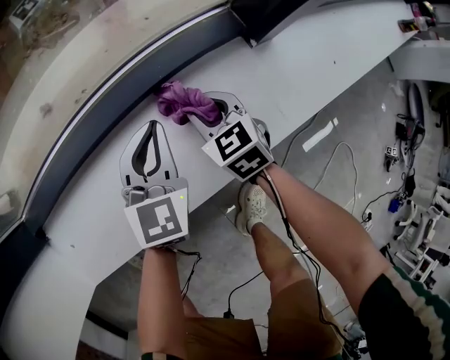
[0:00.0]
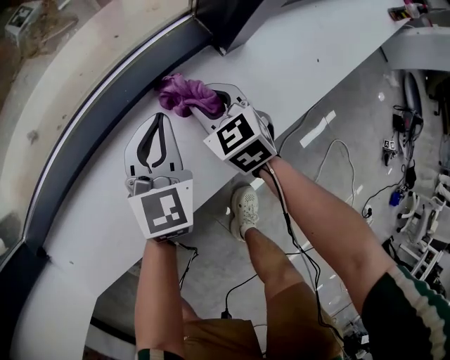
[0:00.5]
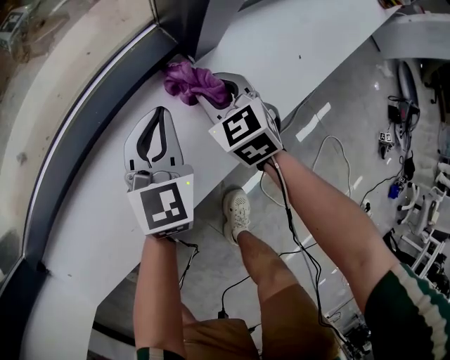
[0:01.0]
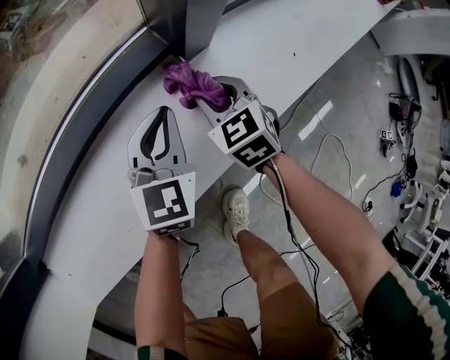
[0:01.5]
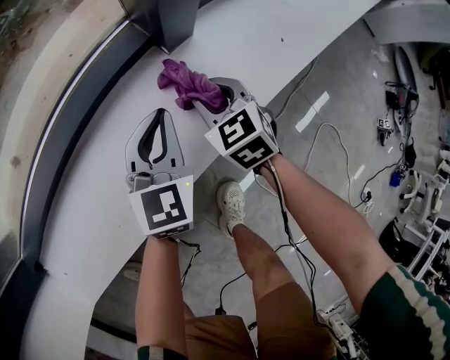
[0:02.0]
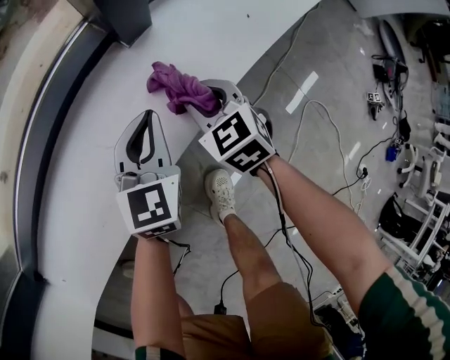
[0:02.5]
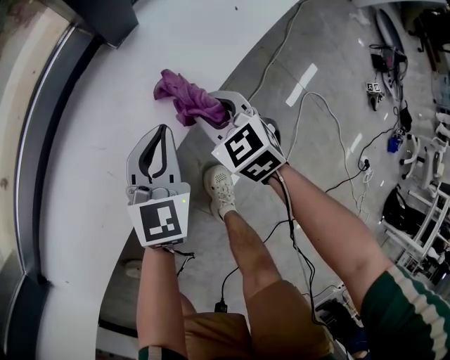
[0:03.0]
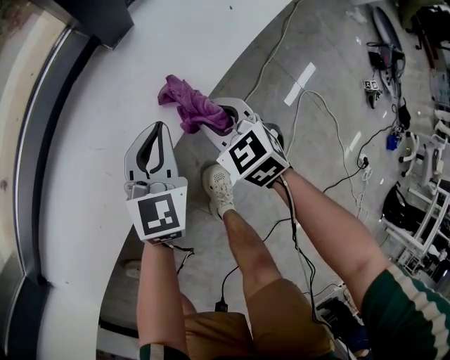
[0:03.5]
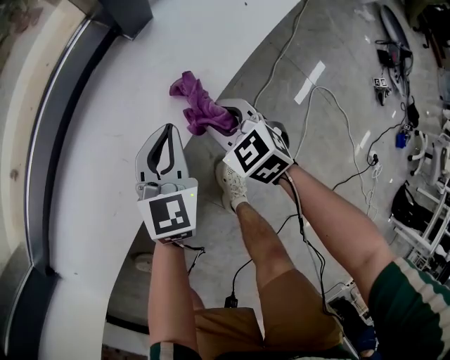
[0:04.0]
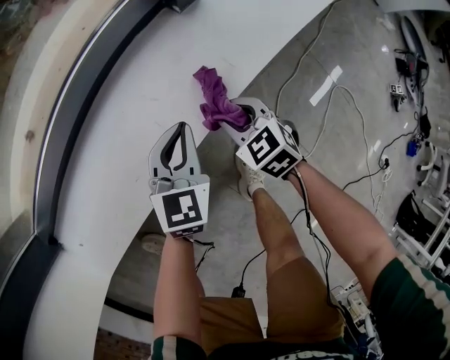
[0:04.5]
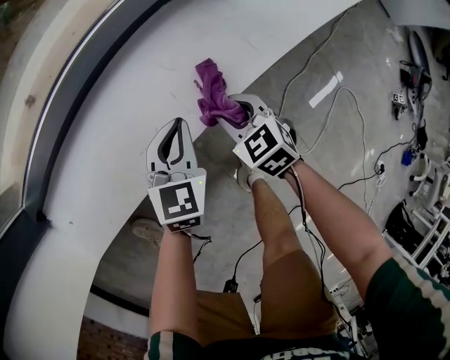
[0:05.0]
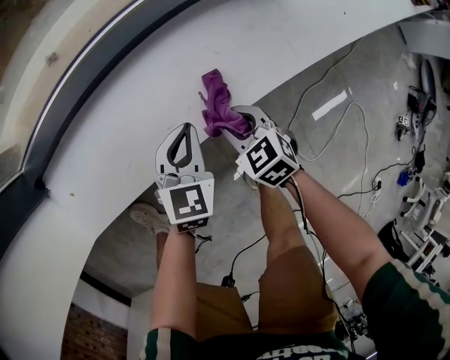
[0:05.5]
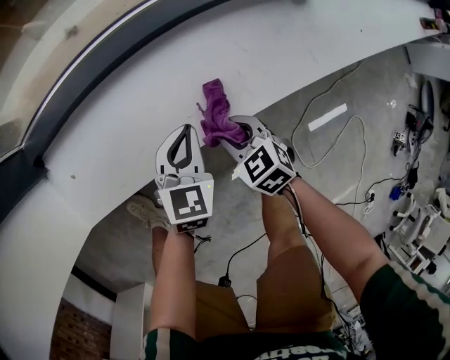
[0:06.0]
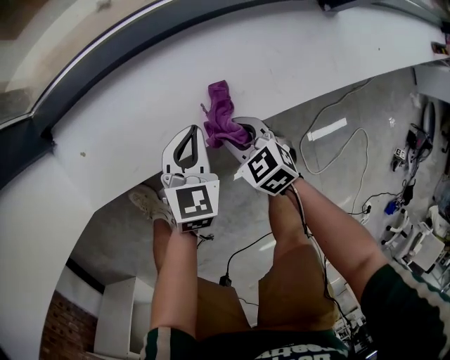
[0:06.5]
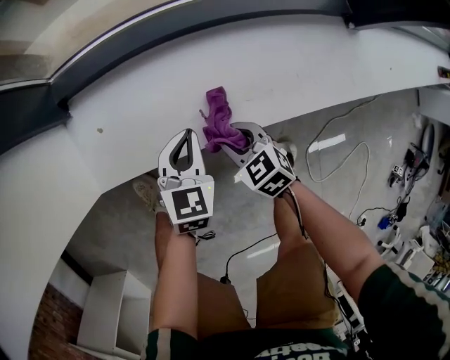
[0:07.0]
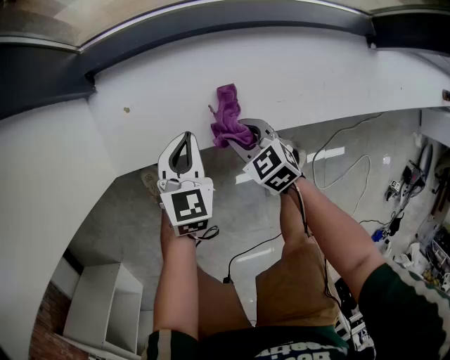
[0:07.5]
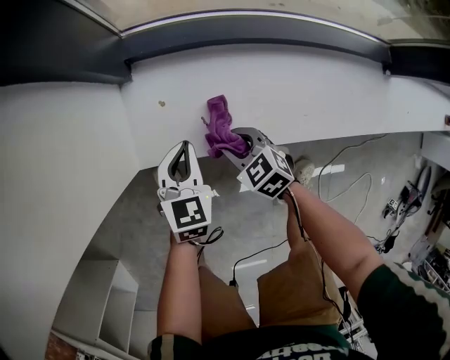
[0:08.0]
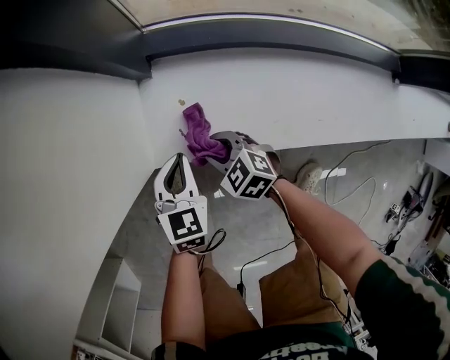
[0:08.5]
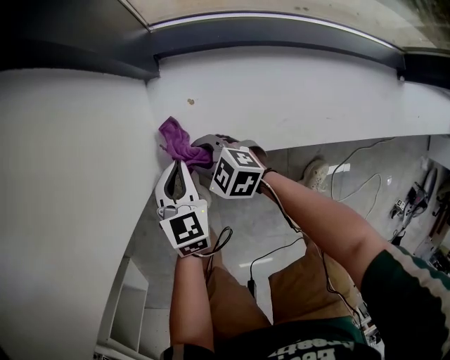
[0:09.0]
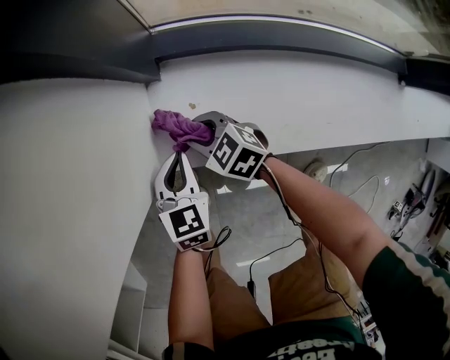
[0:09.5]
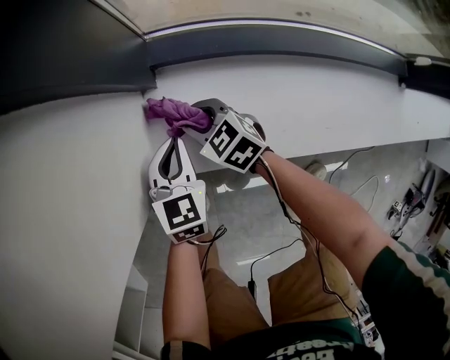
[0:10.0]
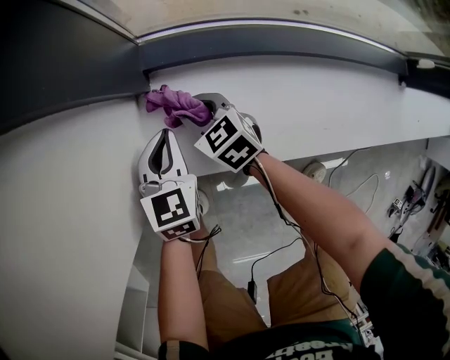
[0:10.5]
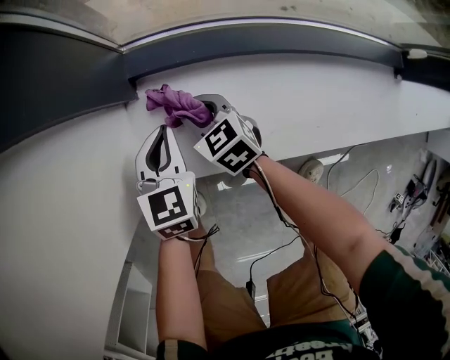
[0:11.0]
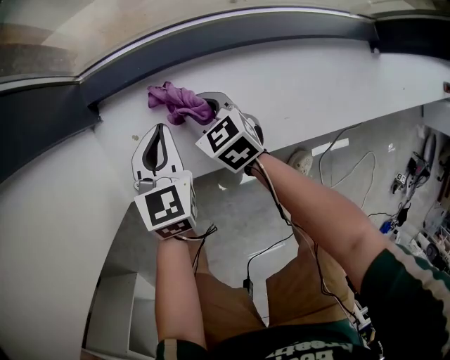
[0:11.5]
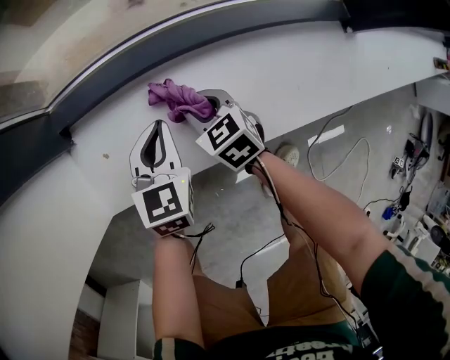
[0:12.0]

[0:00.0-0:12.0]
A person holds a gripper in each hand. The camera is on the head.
0:00.0 to 0:02.0: Both grippers move to the right, some 20 cm.
0:02.0 to 0:04.0: The grippers both shift backward by roughly 10 cm.
0:04.0 to 0:06.0: Both grippers travel together to the left, about 25 cm. The left gripper swivels roughly 20 degrees. Meanwhile the right gripper swivels roughly 20 degrees.
0:06.0 to 0:08.0: The left gripper moves about 35 cm, and rotates roughly 30 degrees; the right gripper moves approximately 30 cm, and swivels roughly 30 degrees.
0:08.0 to 0:10.0: The left gripper heads forward, covering some 10 cm; the right gripper heads forward, covering approximately 20 cm.
0:10.0 to 0:12.0: Both grippers travel together to the right, roughly 25 cm. The right gripper rotates approximately 30 degrees.

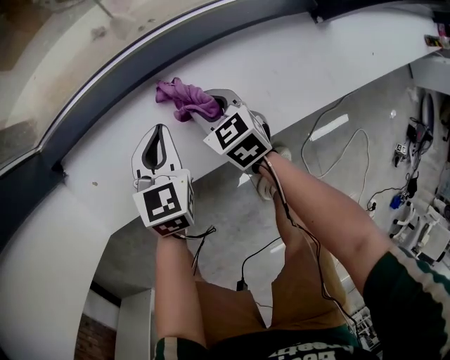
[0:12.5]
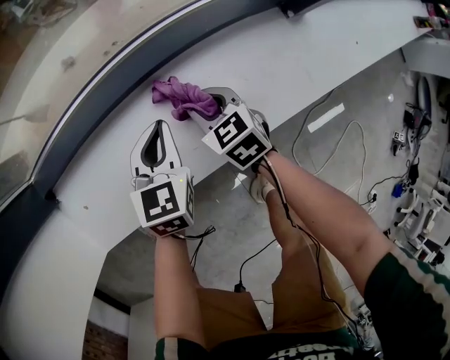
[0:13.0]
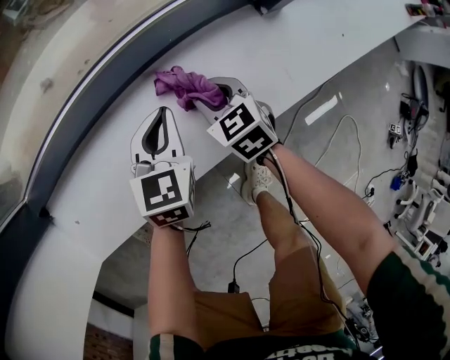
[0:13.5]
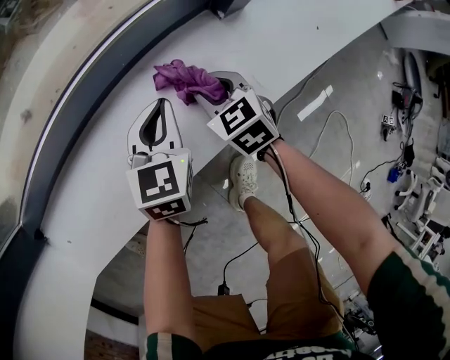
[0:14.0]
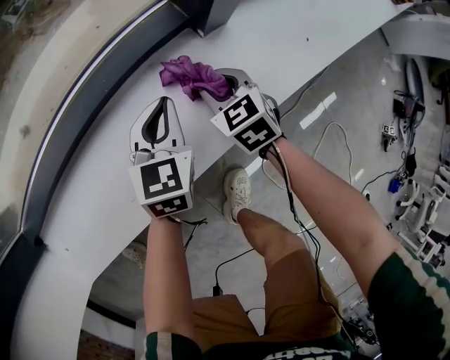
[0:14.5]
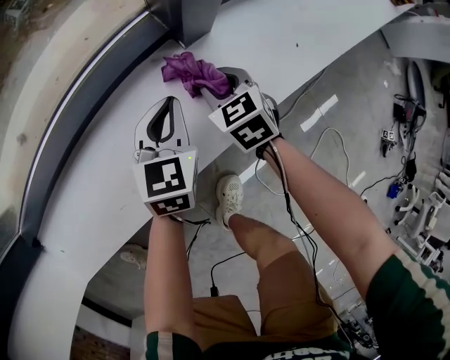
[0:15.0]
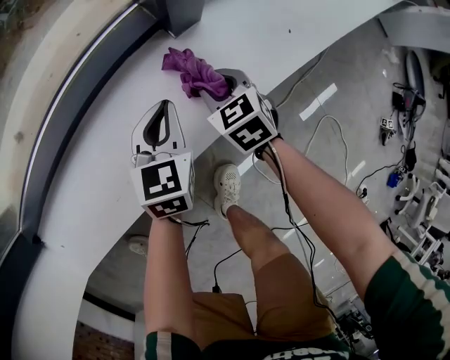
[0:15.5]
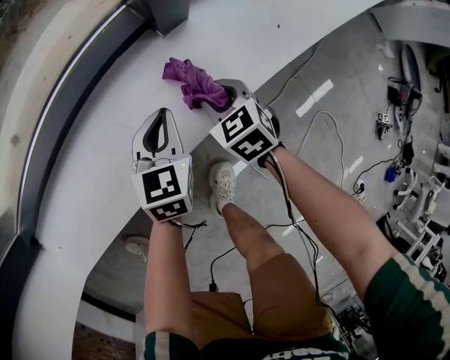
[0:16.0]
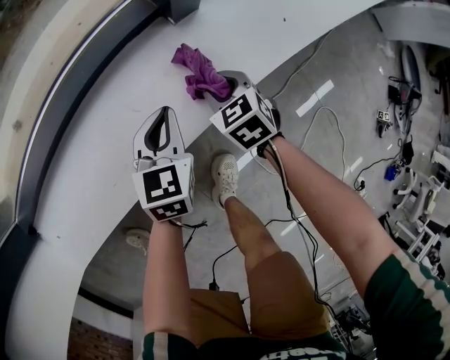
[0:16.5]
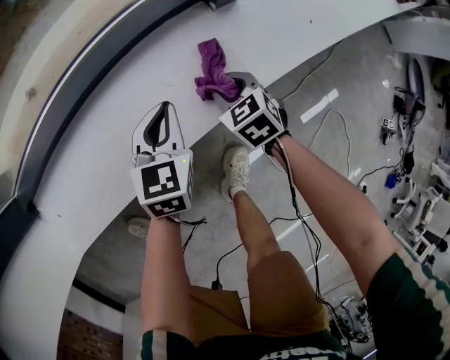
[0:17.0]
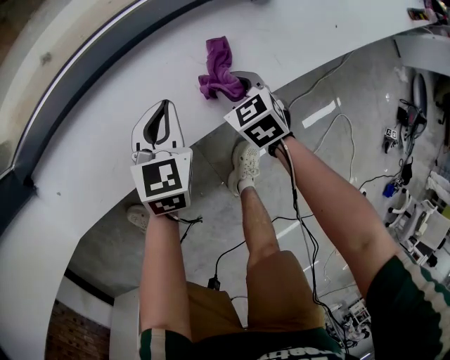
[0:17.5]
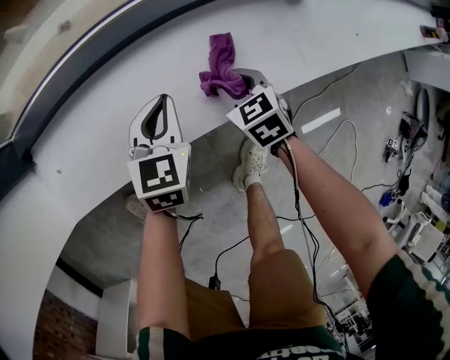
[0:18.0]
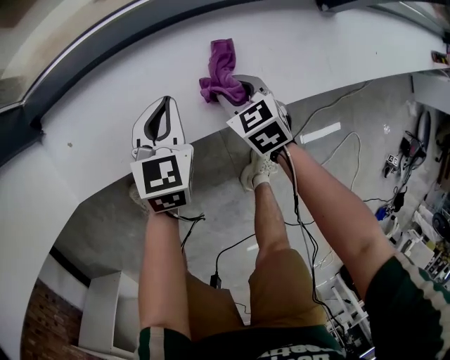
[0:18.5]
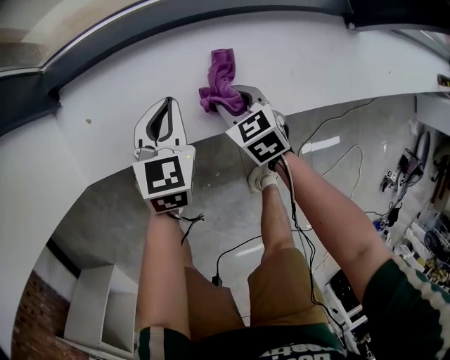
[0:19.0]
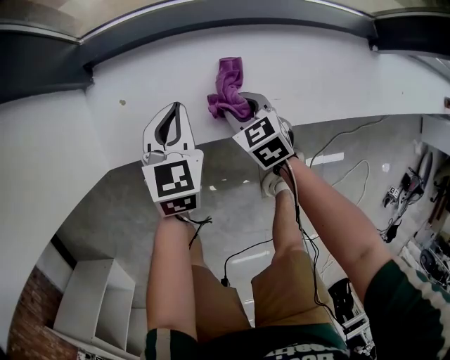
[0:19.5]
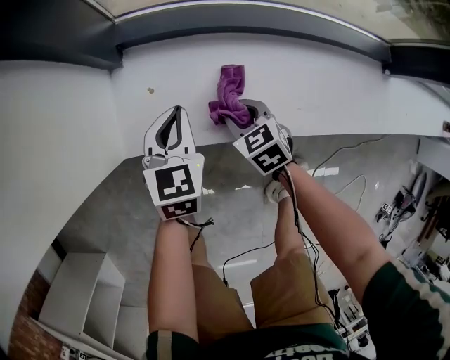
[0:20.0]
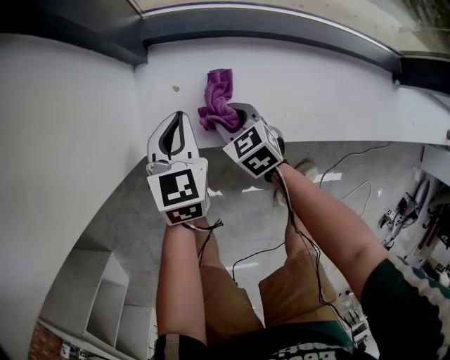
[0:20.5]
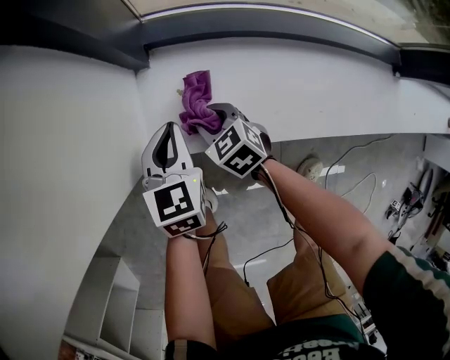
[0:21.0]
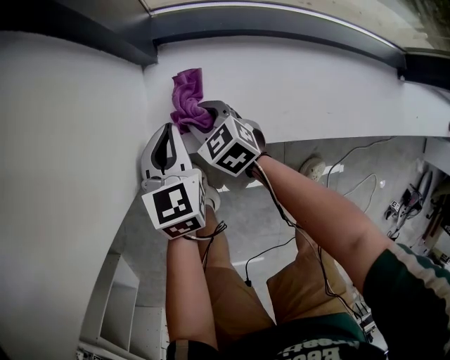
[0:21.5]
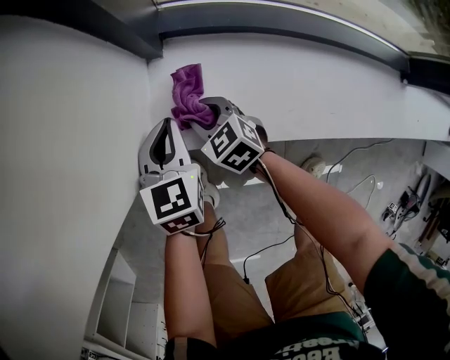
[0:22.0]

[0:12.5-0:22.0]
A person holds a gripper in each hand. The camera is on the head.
0:12.5 to 0:14.5: Both grippers travel together to the right, some 35 cm.
0:14.5 to 0:16.5: The two grippers go some 5 cm backward.
0:16.5 to 0:18.0: The two grippers go about 20 cm to the left.
0:18.0 to 0:20.0: The right gripper ends up roughly 35 cm from where it was, and turns by about 20 degrees. Meanwhile the left gripper shifts by approximately 35 cm, and changes its angle by roughly 20 degrees.
0:20.0 to 0:22.0: The right gripper shifts about 25 cm to the left and forward. Meanwhile the left gripper heads to the left, covering approximately 15 cm.

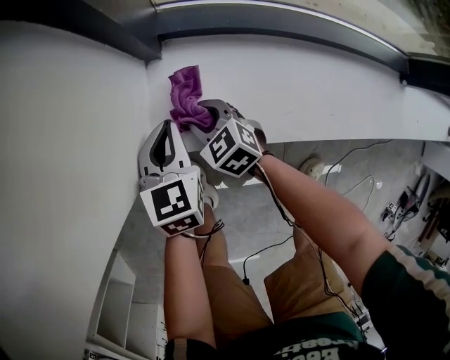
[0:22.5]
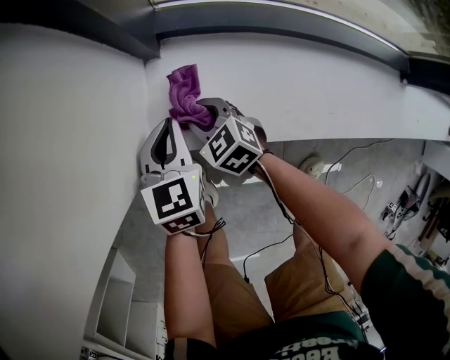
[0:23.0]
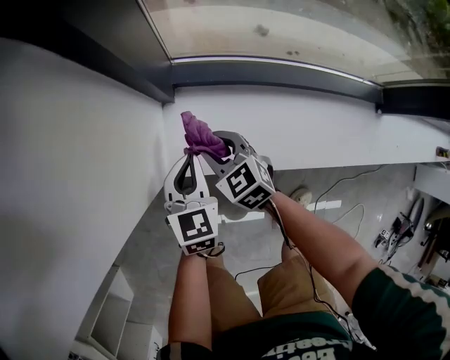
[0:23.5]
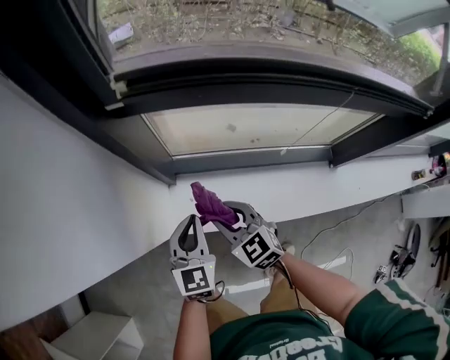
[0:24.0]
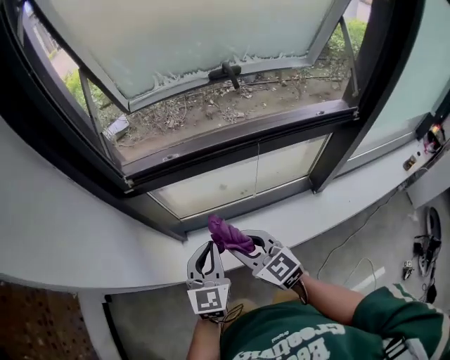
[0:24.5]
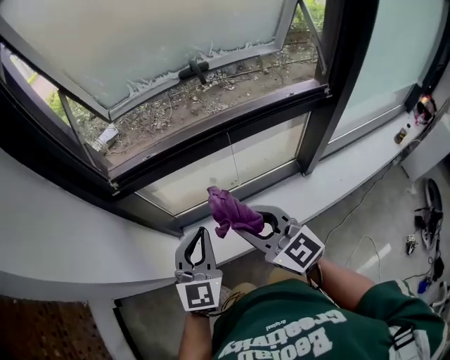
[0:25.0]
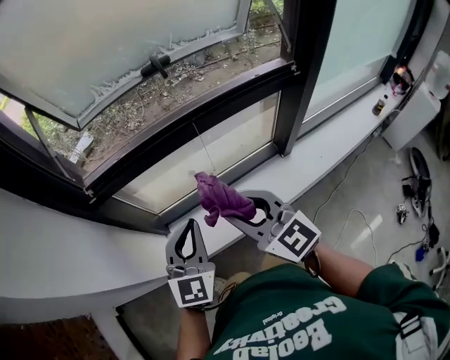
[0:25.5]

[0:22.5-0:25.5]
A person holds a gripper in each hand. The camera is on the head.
0:22.5 to 0:24.0: Both grippers travel together upward, roughly 35 cm. The left gripper changes its angle by approximately 20 degrees, while the right gripper turns by approximately 20 degrees.
0:24.0 to 0:25.5: The grippers both shift upward and to the right by approximately 35 cm. The left gripper swivels about 30 degrees. The right gripper rotates roughly 30 degrees.

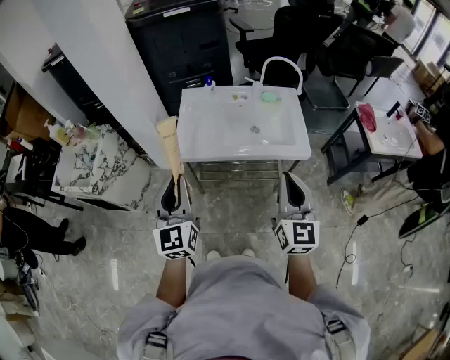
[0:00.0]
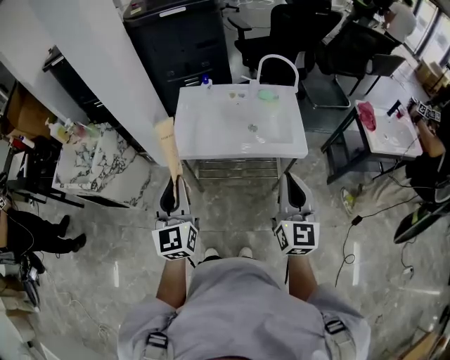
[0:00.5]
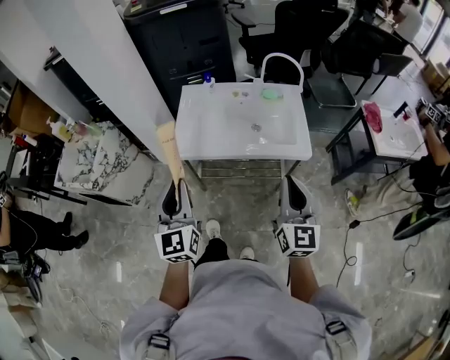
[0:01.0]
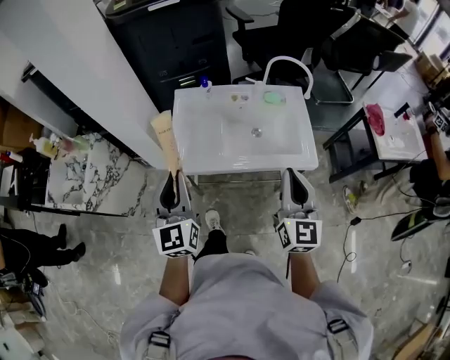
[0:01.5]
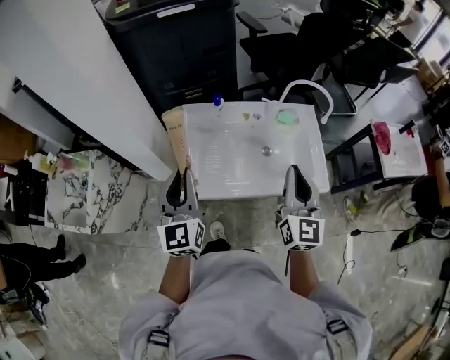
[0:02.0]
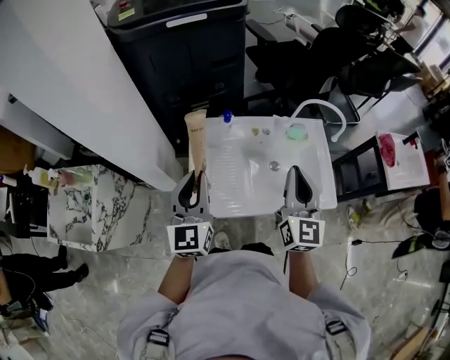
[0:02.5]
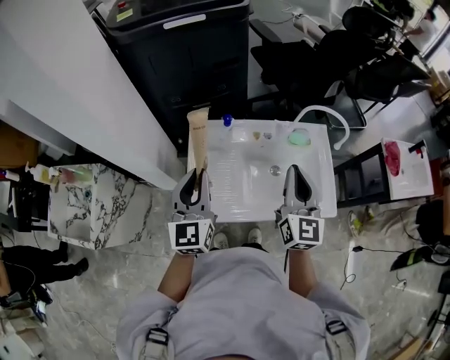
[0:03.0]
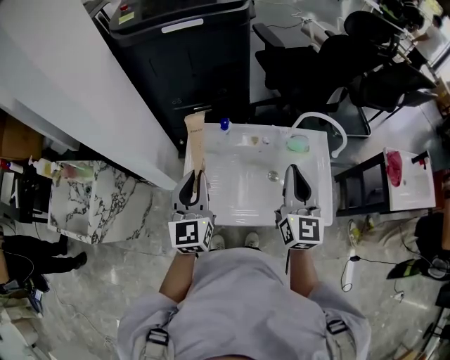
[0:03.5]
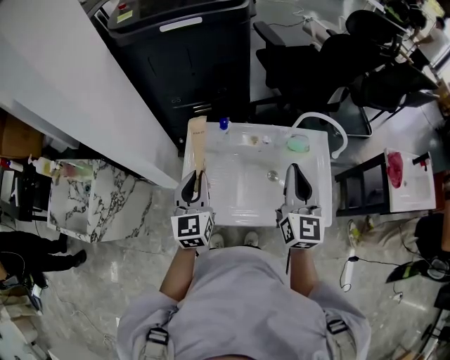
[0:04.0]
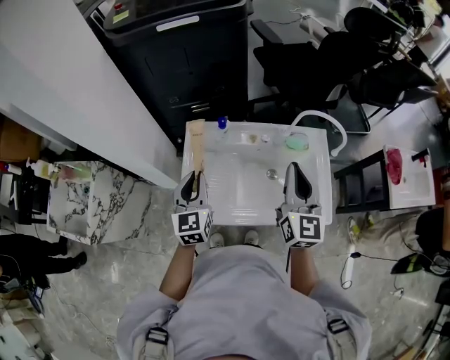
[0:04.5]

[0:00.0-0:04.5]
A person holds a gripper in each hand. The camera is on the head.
0:00.0 to 0:02.0: The two grippers go some 25 cm forward.
0:02.0 to 0:04.5: The right gripper goes roughly 15 cm forward; the left gripper goes about 15 cm forward and downward.
